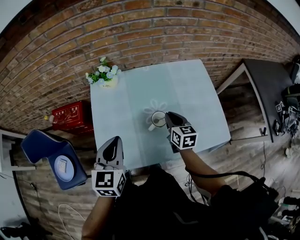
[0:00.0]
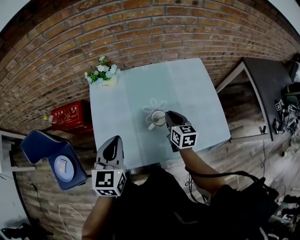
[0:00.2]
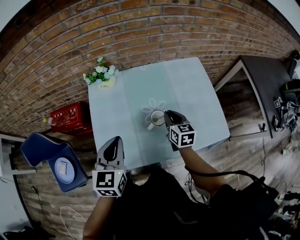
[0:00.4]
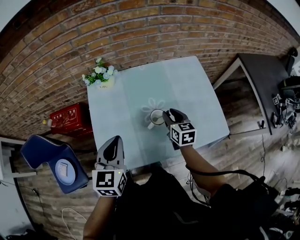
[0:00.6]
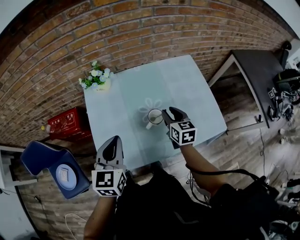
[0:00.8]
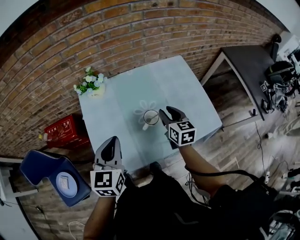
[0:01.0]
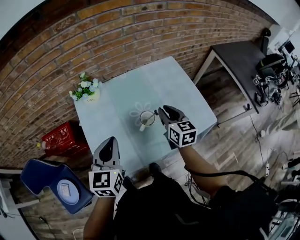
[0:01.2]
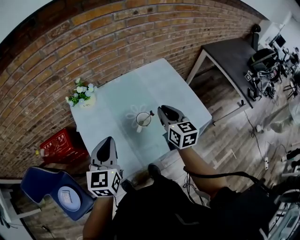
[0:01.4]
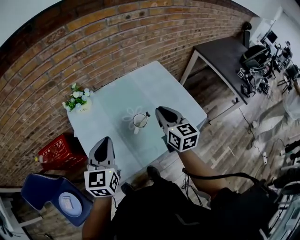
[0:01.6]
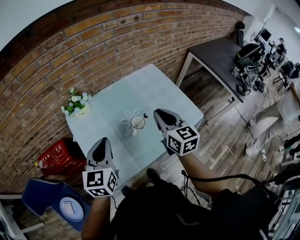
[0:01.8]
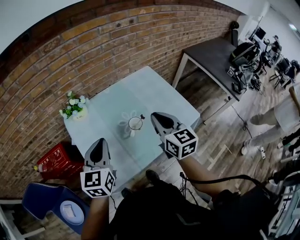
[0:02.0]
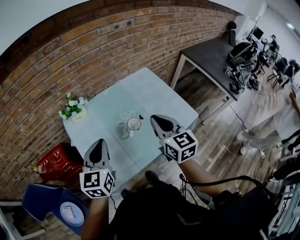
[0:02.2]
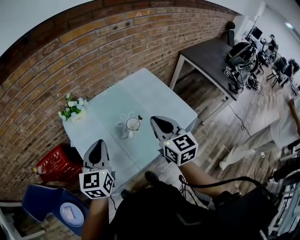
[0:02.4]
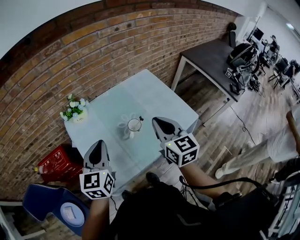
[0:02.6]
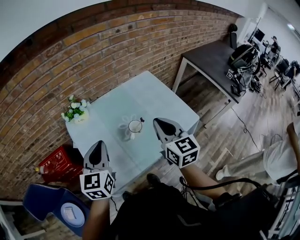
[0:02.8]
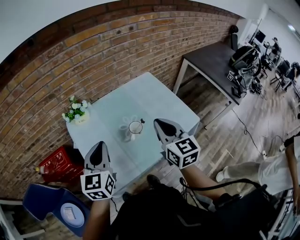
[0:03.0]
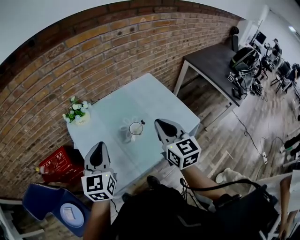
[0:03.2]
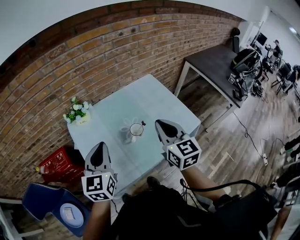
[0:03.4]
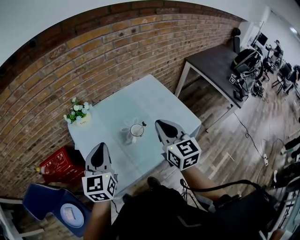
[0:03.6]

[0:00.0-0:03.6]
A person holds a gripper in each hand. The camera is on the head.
0:00.0 to 0:01.8: The right gripper goes about 20 cm upward and backward, rotates approximately 20 degrees, and opens and closes again, while the left gripper changes place by roughly 5 cm.
0:01.8 to 0:03.6: The right gripper moves about 5 cm.

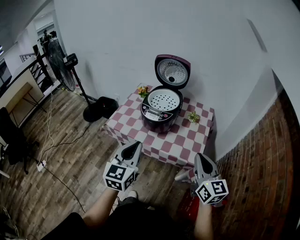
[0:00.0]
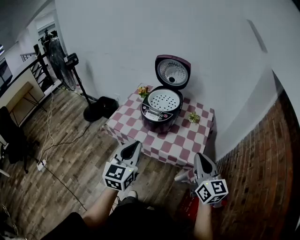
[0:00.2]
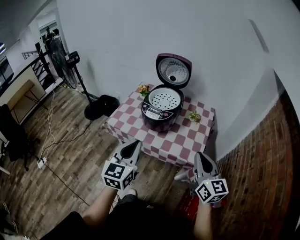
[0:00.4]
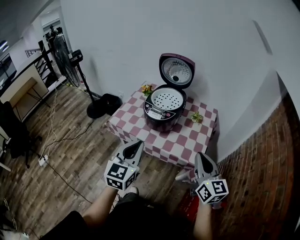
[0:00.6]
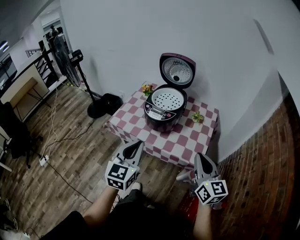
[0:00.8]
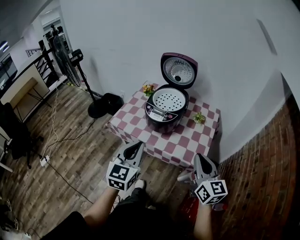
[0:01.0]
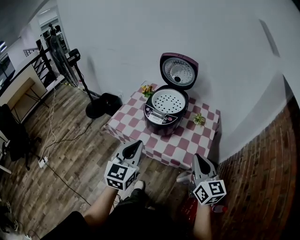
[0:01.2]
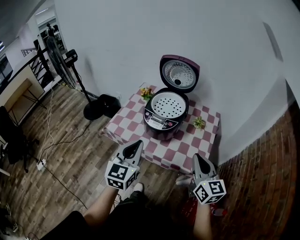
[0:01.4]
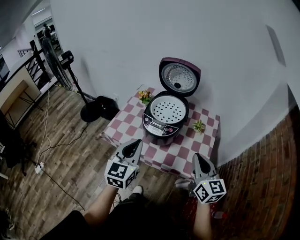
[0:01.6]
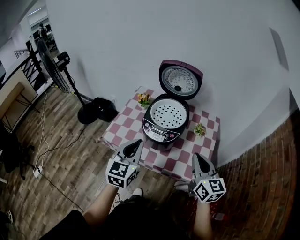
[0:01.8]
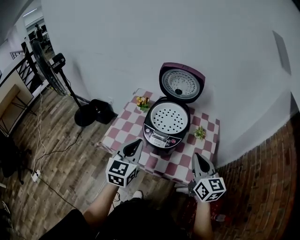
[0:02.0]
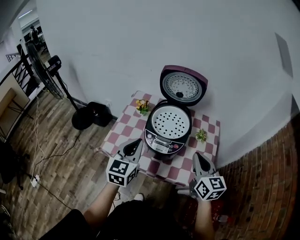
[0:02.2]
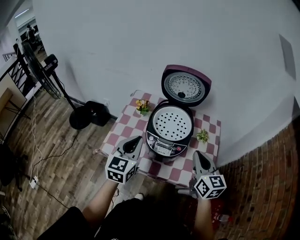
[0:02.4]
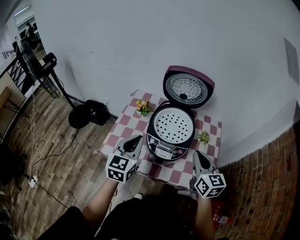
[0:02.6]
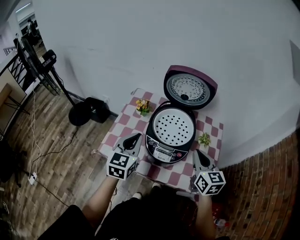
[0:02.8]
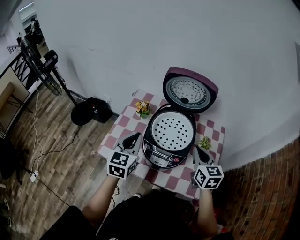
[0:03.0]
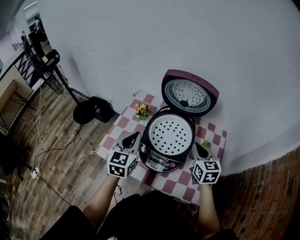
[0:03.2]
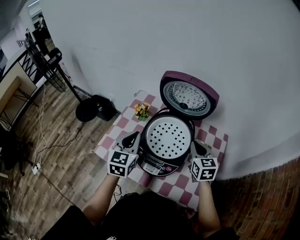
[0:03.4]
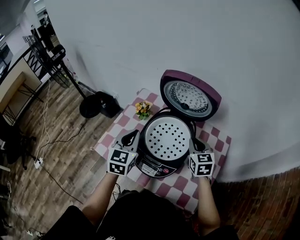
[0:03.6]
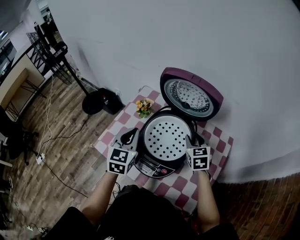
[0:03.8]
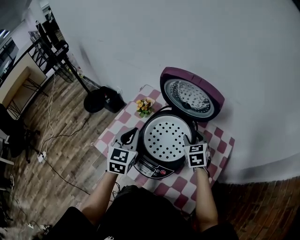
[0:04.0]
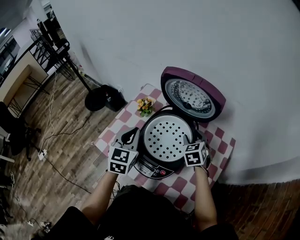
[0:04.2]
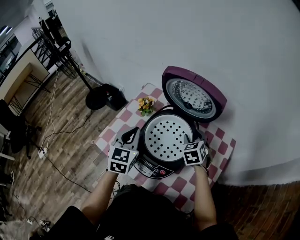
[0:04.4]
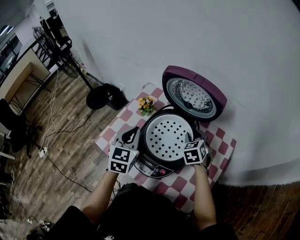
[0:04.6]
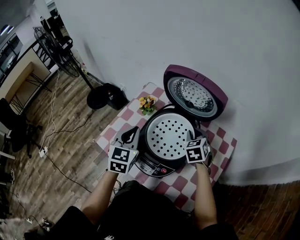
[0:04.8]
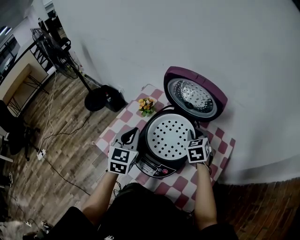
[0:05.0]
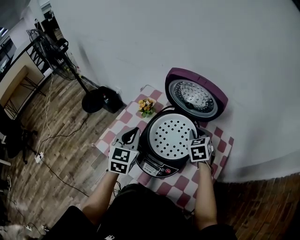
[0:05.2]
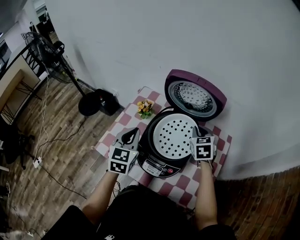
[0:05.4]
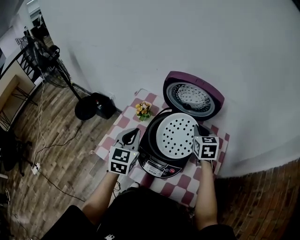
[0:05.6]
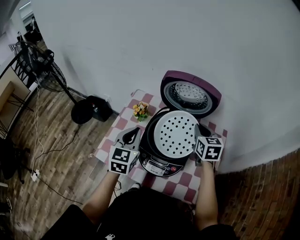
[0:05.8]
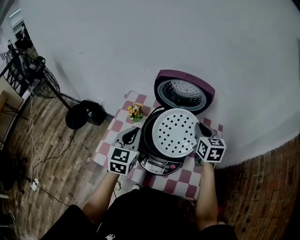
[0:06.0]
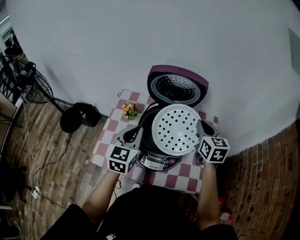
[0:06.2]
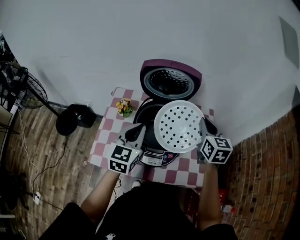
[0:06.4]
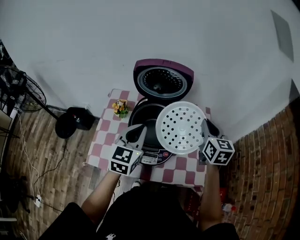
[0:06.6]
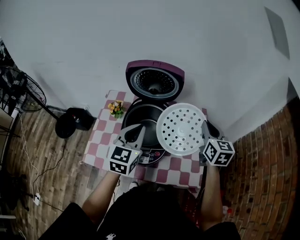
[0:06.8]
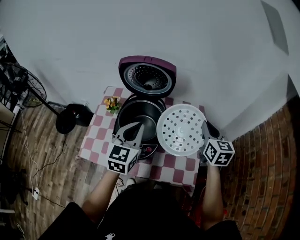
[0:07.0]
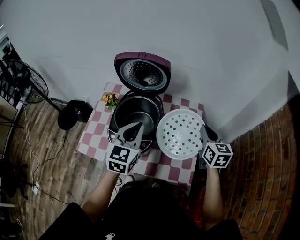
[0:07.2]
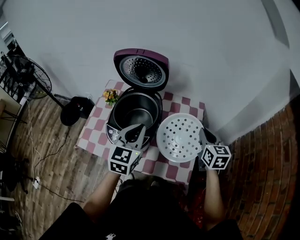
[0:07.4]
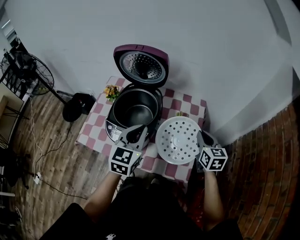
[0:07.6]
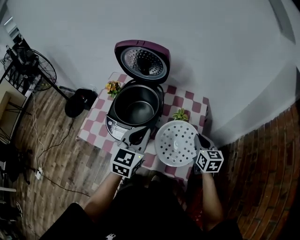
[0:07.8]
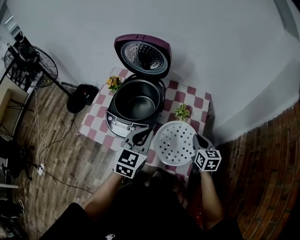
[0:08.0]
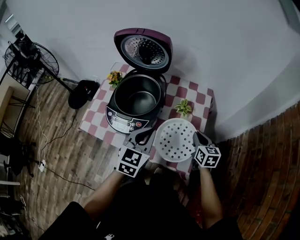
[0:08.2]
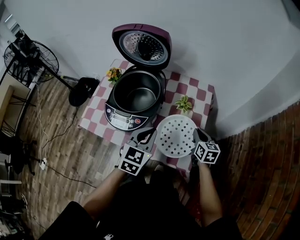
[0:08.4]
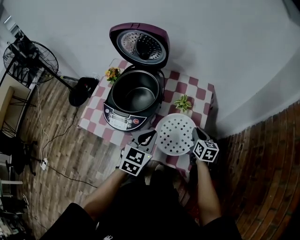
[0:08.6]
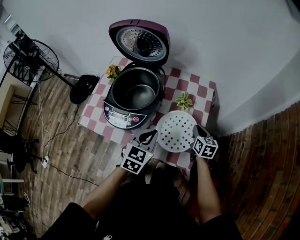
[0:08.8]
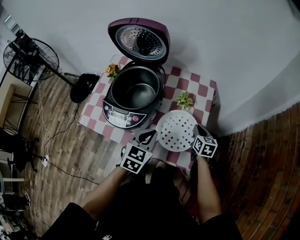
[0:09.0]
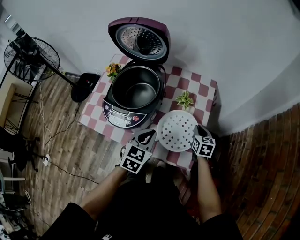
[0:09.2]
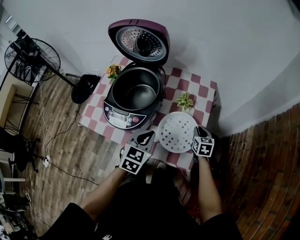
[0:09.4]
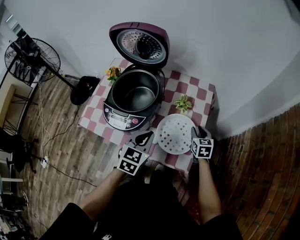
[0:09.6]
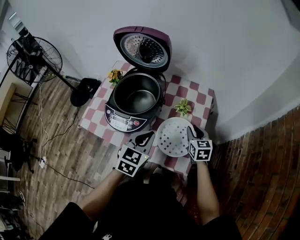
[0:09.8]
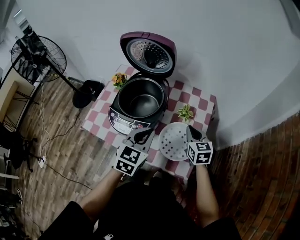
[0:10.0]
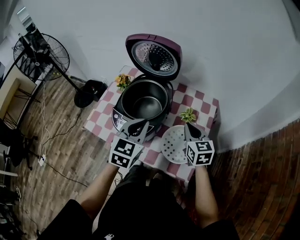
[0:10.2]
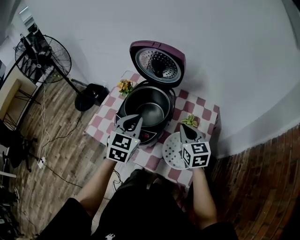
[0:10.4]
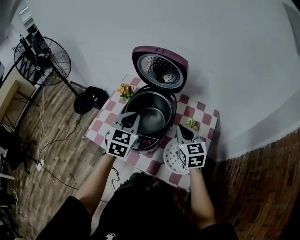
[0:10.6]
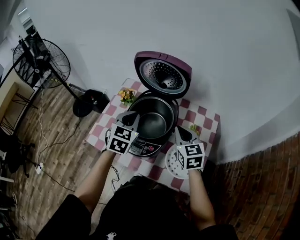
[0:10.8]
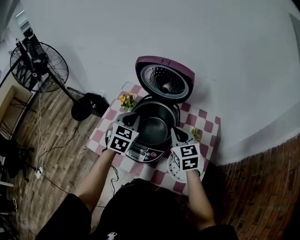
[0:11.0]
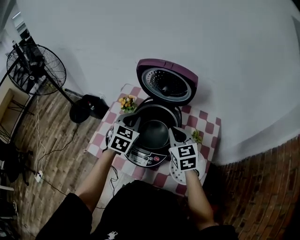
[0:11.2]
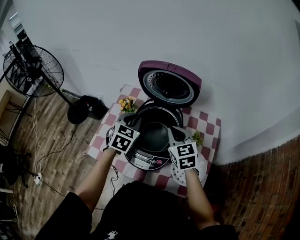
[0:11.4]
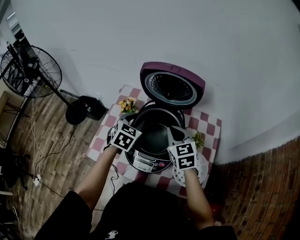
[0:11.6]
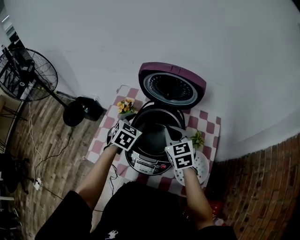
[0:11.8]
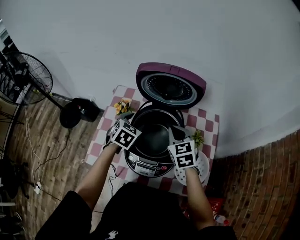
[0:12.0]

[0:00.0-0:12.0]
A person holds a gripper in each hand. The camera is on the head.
0:00.0 to 0:01.6: The two grippers go roughly 10 cm forward.
0:01.6 to 0:03.0: The two grippers go roughly 20 cm forward.
0:03.0 to 0:04.4: The left gripper heads forward, covering approximately 5 cm; the right gripper travels forward and downward by roughly 20 cm, turns by some 40 degrees, and opens.
0:04.4 to 0:06.0: The right gripper shifts roughly 10 cm upward, changes its angle by some 40 degrees, and closes up.
0:06.0 to 0:07.6: The left gripper is displaced to the right by approximately 20 cm. The right gripper travels to the right and backward by about 25 cm.
0:07.6 to 0:09.0: The left gripper travels downward and to the right by some 15 cm. The right gripper heads downward, covering about 20 cm.
0:09.0 to 0:10.4: The right gripper shifts some 25 cm upward and to the left, rotates approximately 30 degrees, and opens, then closes again, while the left gripper goes approximately 20 cm upward, to the left and forward.
0:10.4 to 0:12.0: The left gripper is displaced forward, downward and to the left by roughly 20 cm, changes its angle by some 30 degrees, and opens its fingers. The right gripper travels to the left and forward by approximately 15 cm.

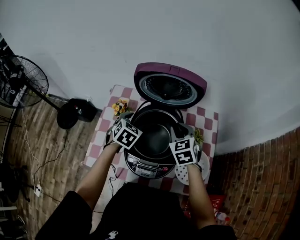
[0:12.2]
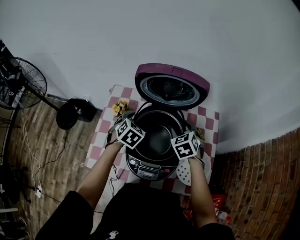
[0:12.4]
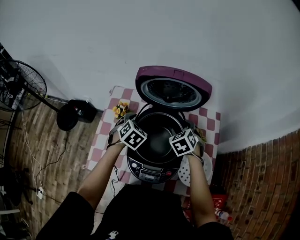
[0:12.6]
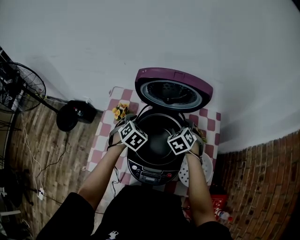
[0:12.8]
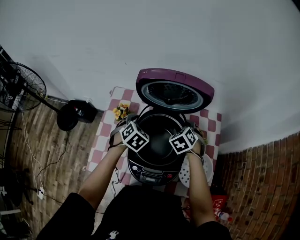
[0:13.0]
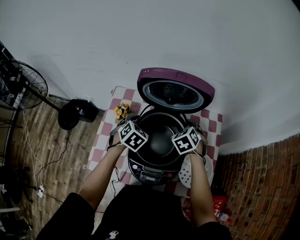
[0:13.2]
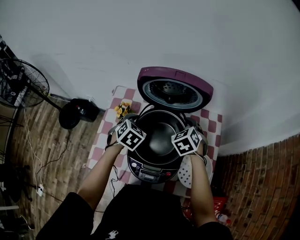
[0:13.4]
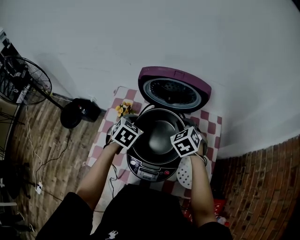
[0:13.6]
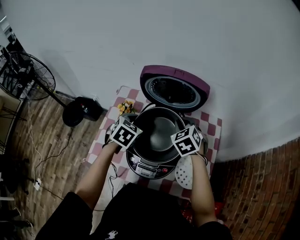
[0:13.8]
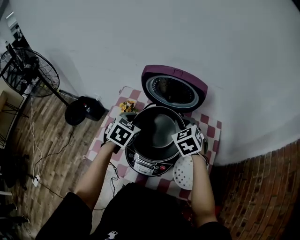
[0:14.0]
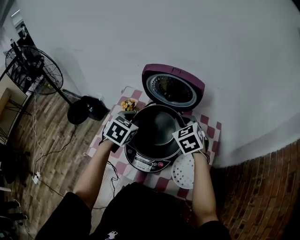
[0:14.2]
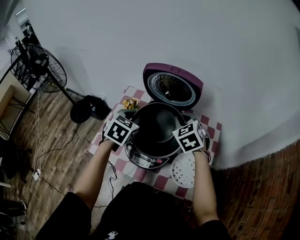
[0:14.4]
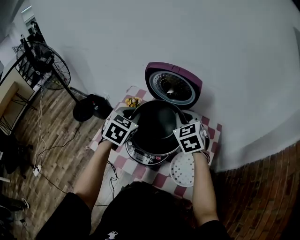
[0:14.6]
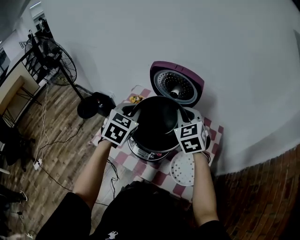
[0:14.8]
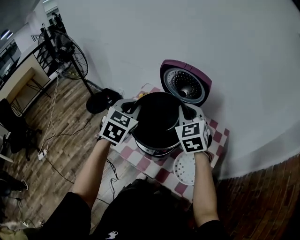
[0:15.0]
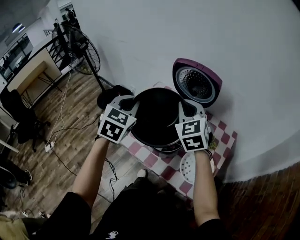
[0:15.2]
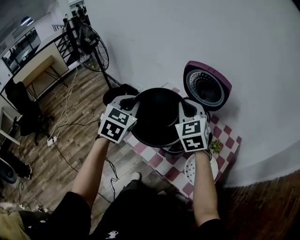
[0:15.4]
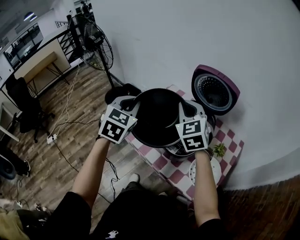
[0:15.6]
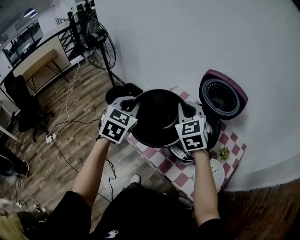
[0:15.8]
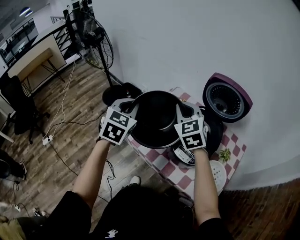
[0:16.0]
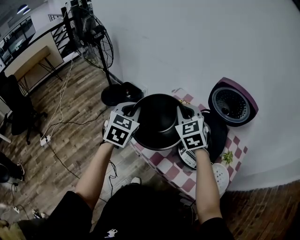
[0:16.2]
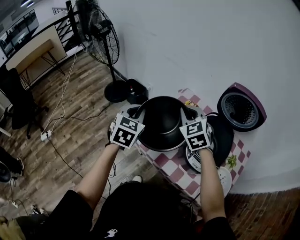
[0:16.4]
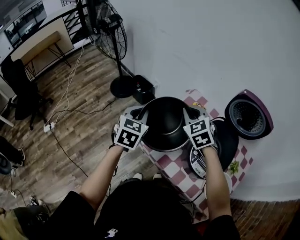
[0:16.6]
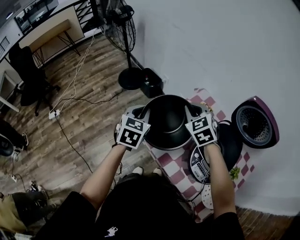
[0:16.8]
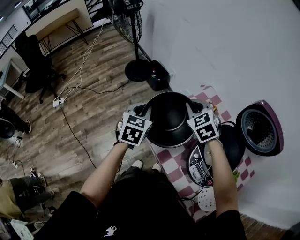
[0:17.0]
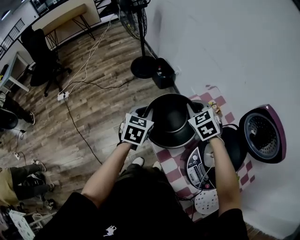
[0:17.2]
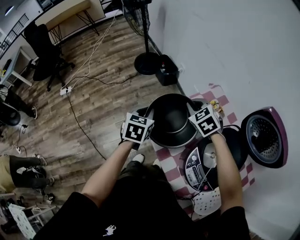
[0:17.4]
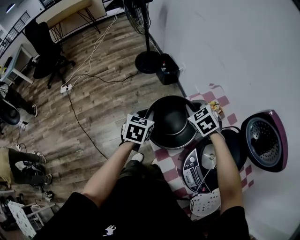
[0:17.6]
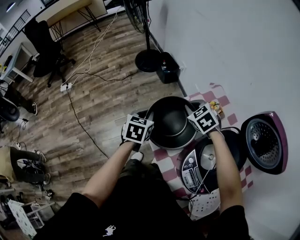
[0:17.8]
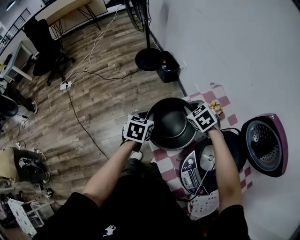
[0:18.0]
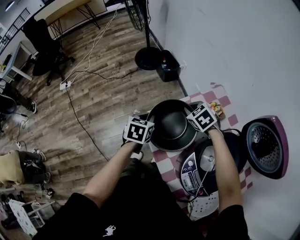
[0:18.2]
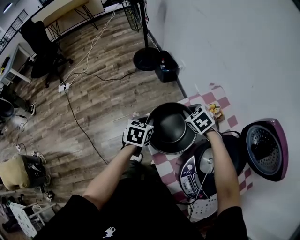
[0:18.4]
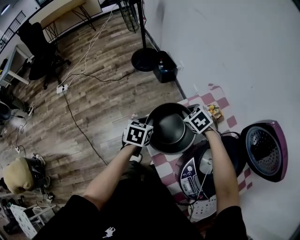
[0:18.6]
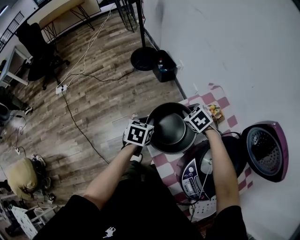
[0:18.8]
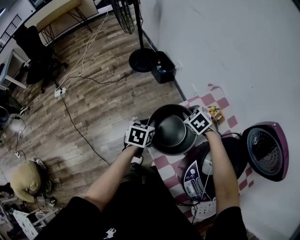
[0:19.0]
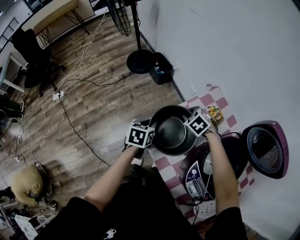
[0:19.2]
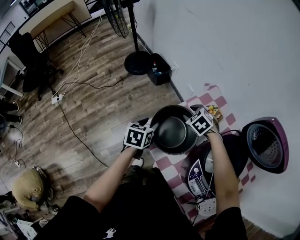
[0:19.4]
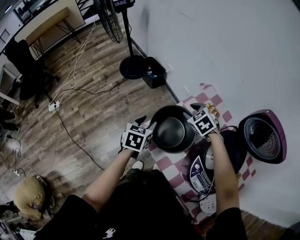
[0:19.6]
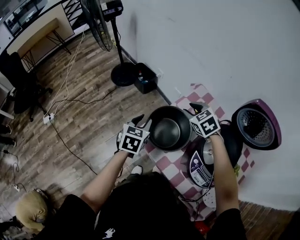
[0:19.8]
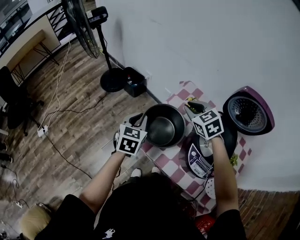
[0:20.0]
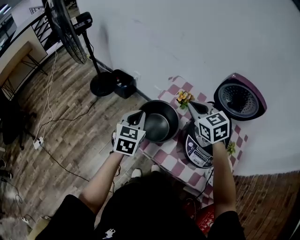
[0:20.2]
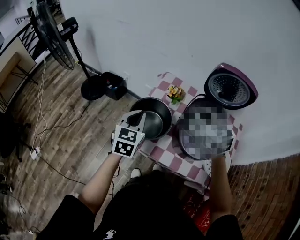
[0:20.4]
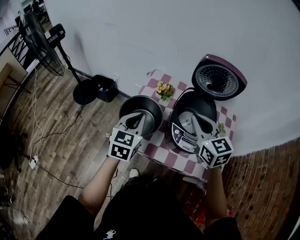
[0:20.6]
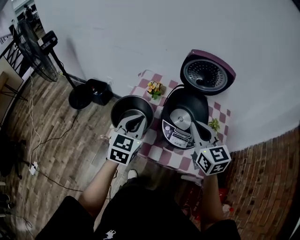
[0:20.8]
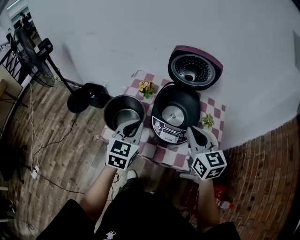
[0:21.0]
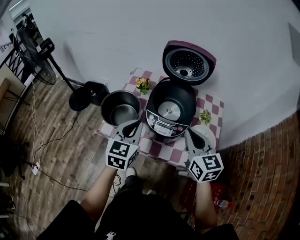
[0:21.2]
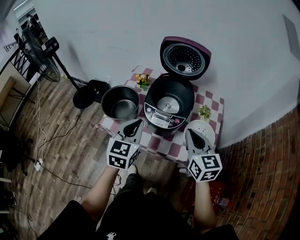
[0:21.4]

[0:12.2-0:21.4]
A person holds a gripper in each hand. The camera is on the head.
0:12.2 to 0:13.8: The right gripper goes downward and returns, some 5 cm each way, and opens, then closes again. The left gripper closes.
0:13.8 to 0:15.2: The grippers both shift upward by about 20 cm. The right gripper changes its angle by approximately 30 degrees. Meanwhile the left gripper rotates about 30 degrees.
0:15.2 to 0:16.8: The right gripper moves to the left and forward, roughly 30 cm, and swivels roughly 30 degrees. Meanwhile the left gripper travels to the left and downward by some 25 cm, and changes its angle by approximately 30 degrees.
0:16.8 to 0:18.4: The two grippers go roughly 20 cm downward. The left gripper swivels approximately 30 degrees. The right gripper swivels some 30 degrees.
0:18.4 to 0:19.8: The two grippers go roughly 10 cm upward. The right gripper swivels approximately 20 degrees, and opens up. Meanwhile the left gripper swivels some 20 degrees, and opens its fingers.
0:19.8 to 0:21.4: The left gripper moves roughly 30 cm, turns by about 30 degrees, and closes its fingers. Meanwhile the right gripper changes place by about 50 cm, tilts its fingers some 30 degrees upward, and closes.
